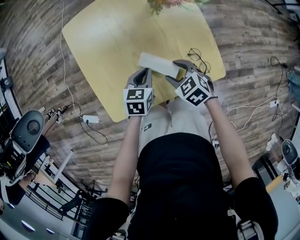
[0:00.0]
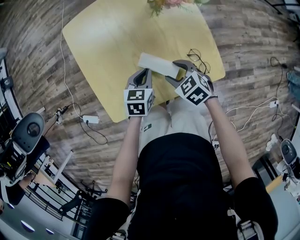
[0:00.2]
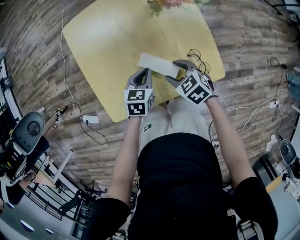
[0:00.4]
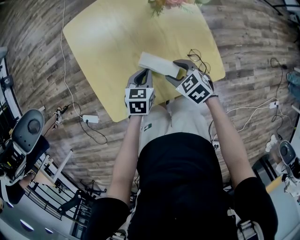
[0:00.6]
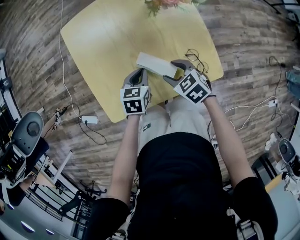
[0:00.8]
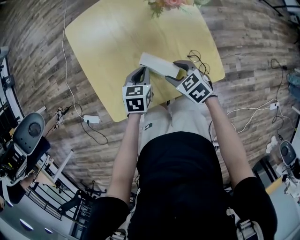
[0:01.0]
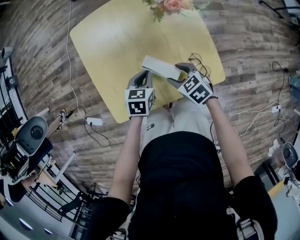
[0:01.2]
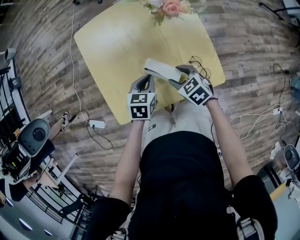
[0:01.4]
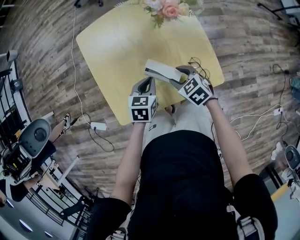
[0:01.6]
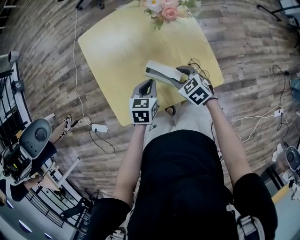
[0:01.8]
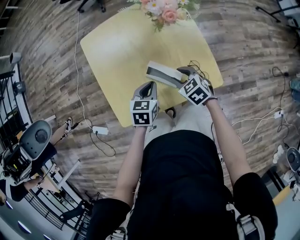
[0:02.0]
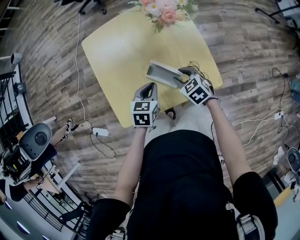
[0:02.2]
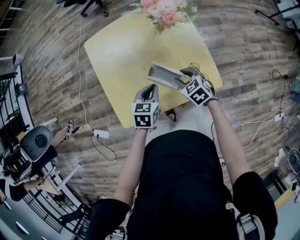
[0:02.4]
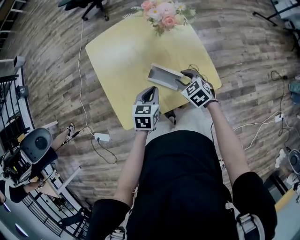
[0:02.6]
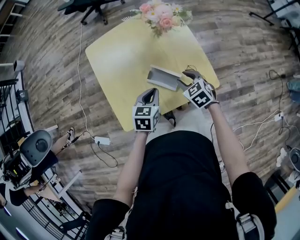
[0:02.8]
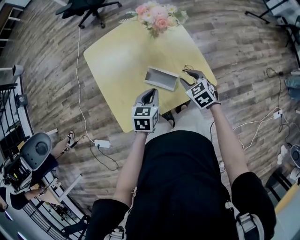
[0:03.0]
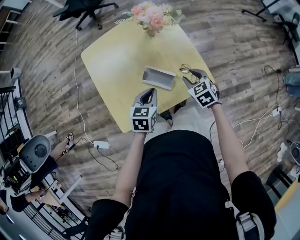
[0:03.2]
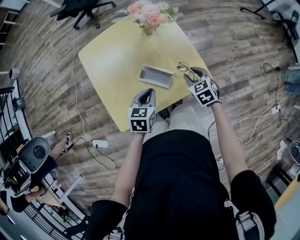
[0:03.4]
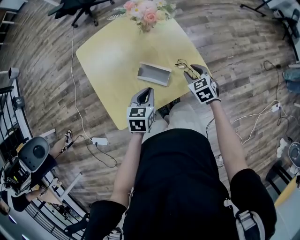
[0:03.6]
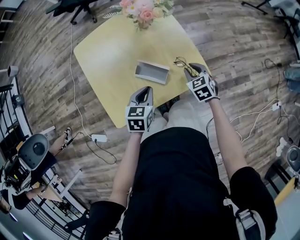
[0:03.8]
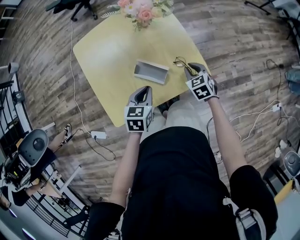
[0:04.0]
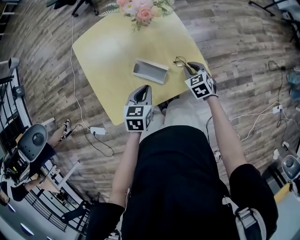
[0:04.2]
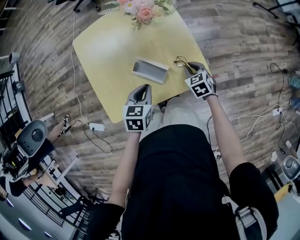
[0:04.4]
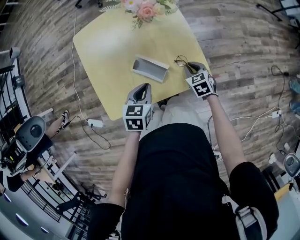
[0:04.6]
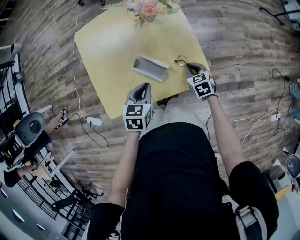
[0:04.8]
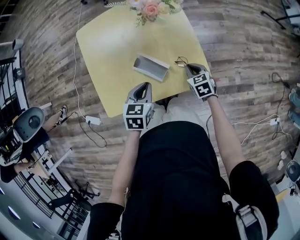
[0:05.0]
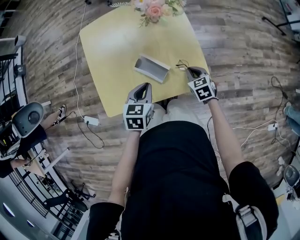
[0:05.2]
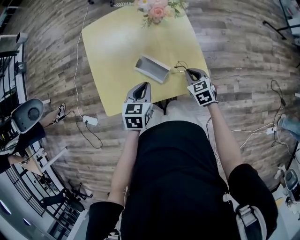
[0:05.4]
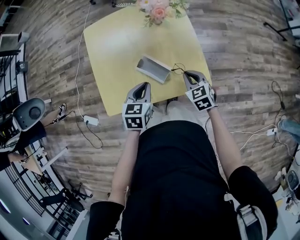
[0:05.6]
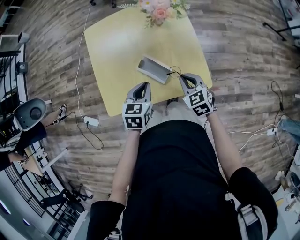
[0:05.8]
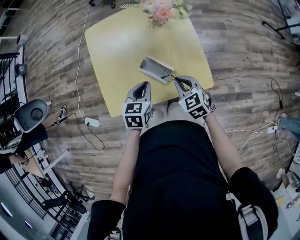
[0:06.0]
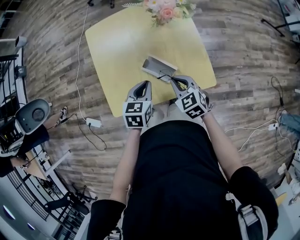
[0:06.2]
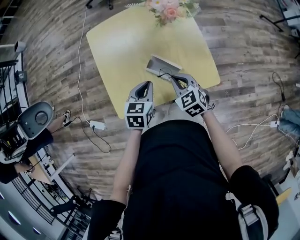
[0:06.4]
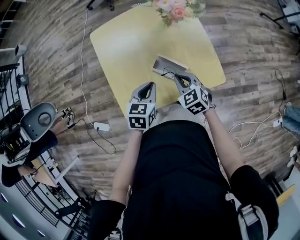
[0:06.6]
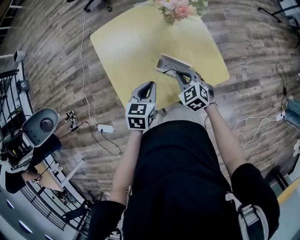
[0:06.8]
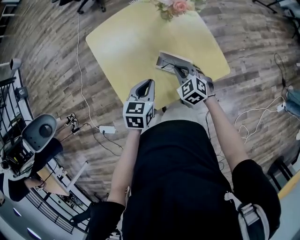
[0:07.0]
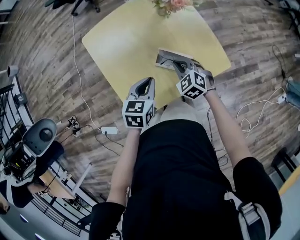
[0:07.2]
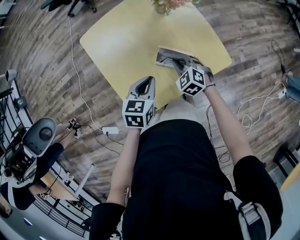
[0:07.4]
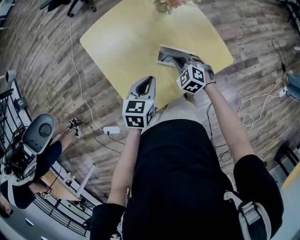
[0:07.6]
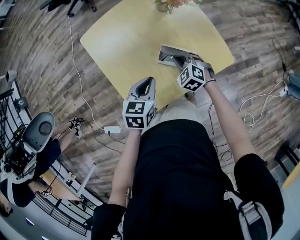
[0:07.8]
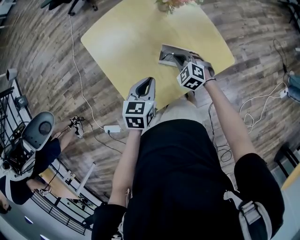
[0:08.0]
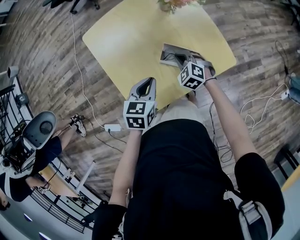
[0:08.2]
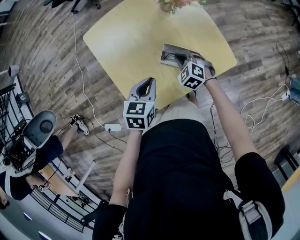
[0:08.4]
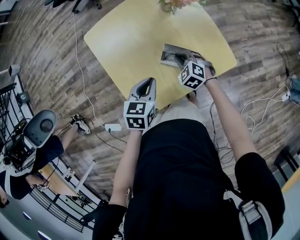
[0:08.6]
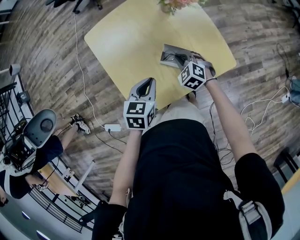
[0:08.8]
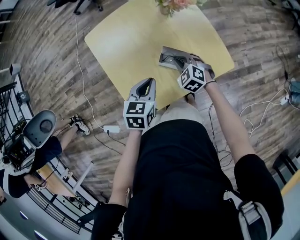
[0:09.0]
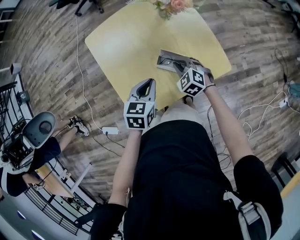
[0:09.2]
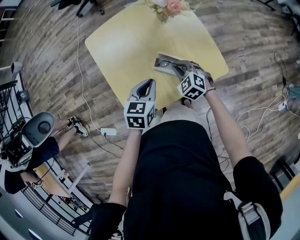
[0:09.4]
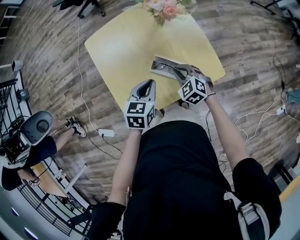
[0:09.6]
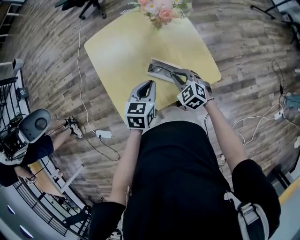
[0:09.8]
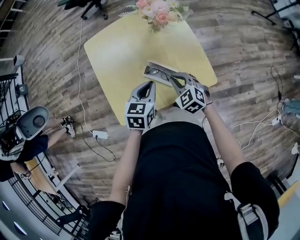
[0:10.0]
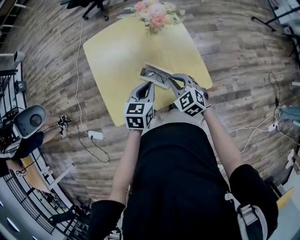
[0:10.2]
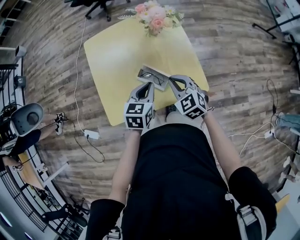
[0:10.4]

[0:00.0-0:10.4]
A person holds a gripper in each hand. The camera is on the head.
0:00.0 to 0:01.4: The grippers make only small movements.
0:01.4 to 0:03.0: The right gripper heads to the right and upward, covering about 10 cm, while the left gripper travels upward and backward by about 10 cm.
0:03.0 to 0:04.4: The right gripper is displaced downward and to the right by some 10 cm.
0:04.4 to 0:06.0: The right gripper goes approximately 15 cm upward and to the left, and rotates some 20 degrees.
0:06.0 to 0:07.4: The left gripper moves to the left, about 10 cm, and rotates some 20 degrees; the right gripper heads to the left, downward and forward, covering roughly 15 cm.
0:07.4 to 0:09.0: The grippers move only a little.
0:09.0 to 0:10.4: The left gripper goes approximately 15 cm to the right. The right gripper moves upward, to the right and backward, roughly 15 cm.

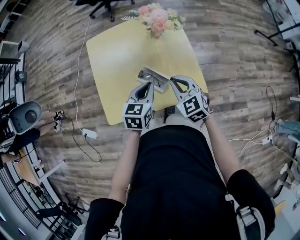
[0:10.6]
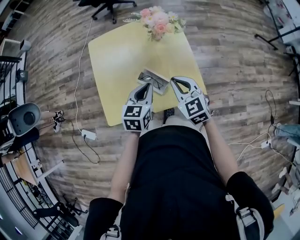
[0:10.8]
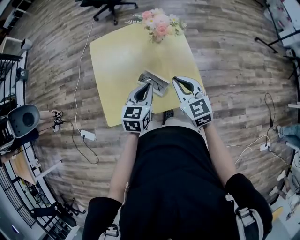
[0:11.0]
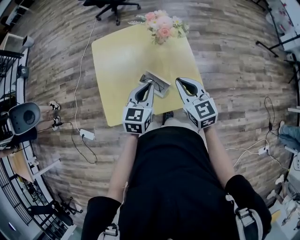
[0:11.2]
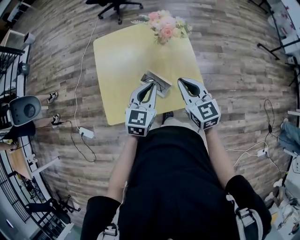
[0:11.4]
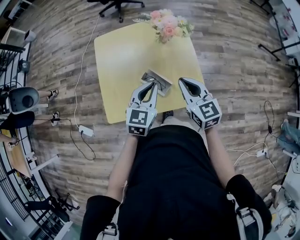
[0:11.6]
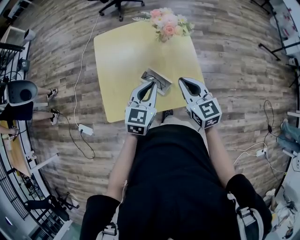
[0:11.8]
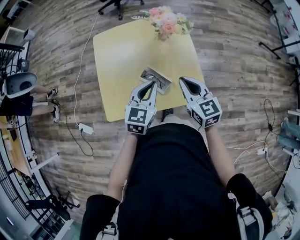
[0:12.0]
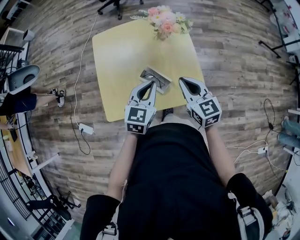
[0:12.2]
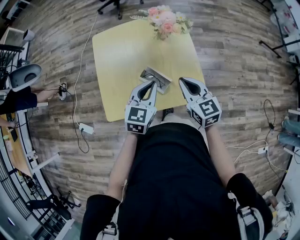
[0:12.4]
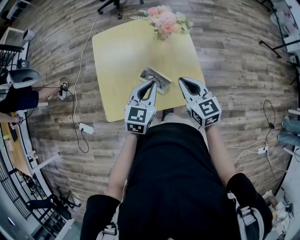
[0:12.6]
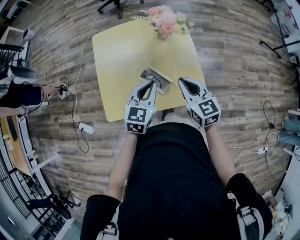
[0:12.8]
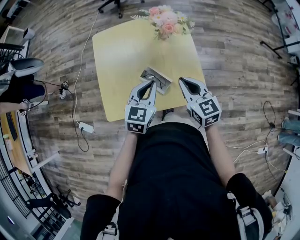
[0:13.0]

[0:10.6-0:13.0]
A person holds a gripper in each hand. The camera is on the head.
0:10.6 to 0:11.8: The right gripper shifts about 5 cm upward, and rotates some 20 degrees.
0:11.8 to 0:13.0: The grippers move only a little.

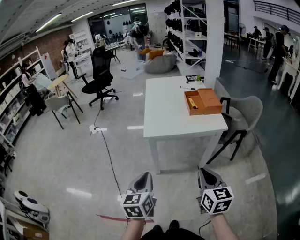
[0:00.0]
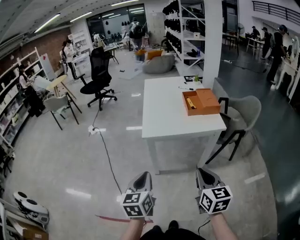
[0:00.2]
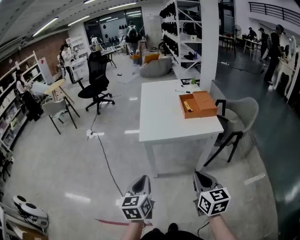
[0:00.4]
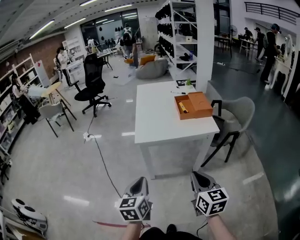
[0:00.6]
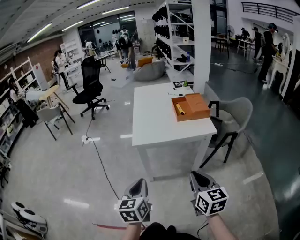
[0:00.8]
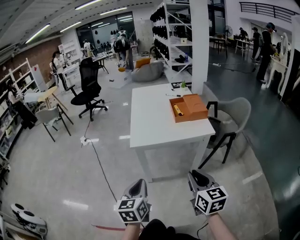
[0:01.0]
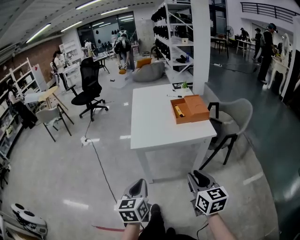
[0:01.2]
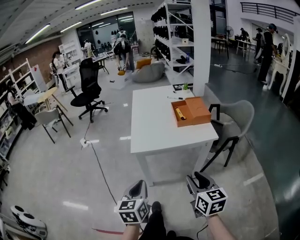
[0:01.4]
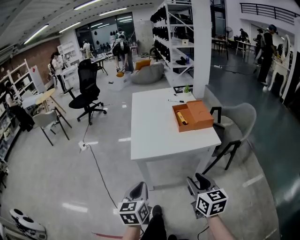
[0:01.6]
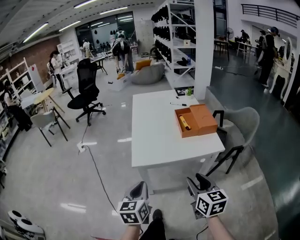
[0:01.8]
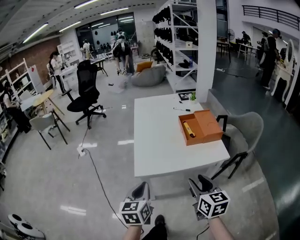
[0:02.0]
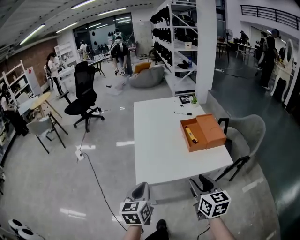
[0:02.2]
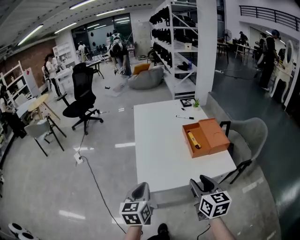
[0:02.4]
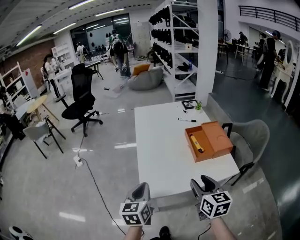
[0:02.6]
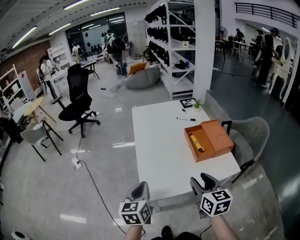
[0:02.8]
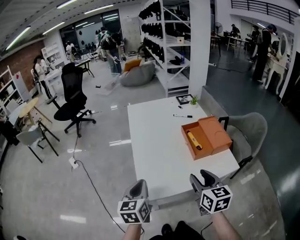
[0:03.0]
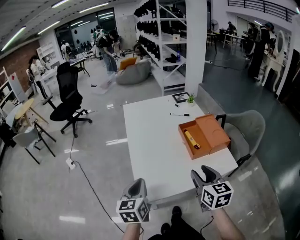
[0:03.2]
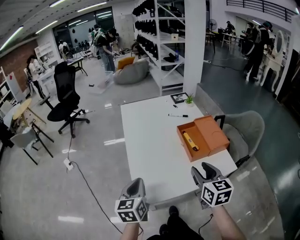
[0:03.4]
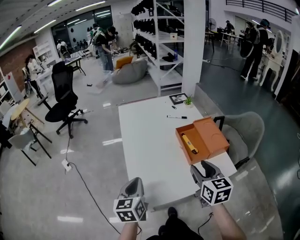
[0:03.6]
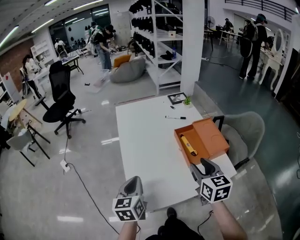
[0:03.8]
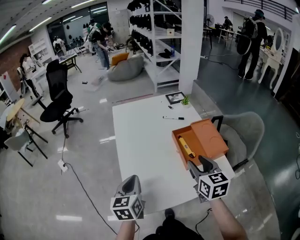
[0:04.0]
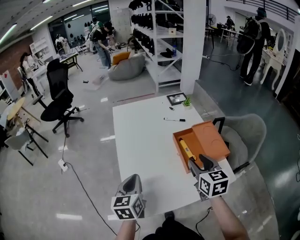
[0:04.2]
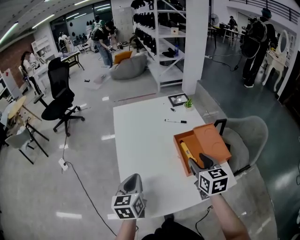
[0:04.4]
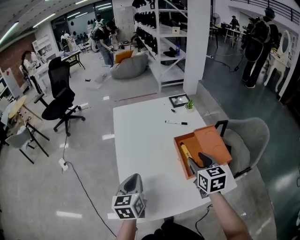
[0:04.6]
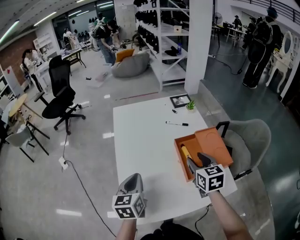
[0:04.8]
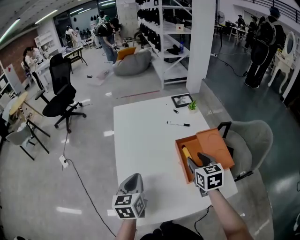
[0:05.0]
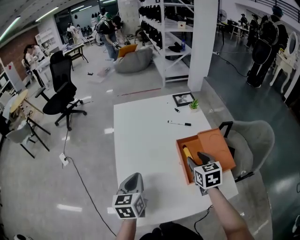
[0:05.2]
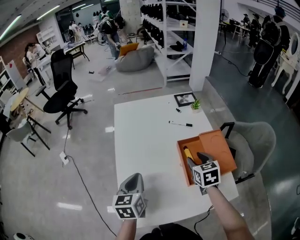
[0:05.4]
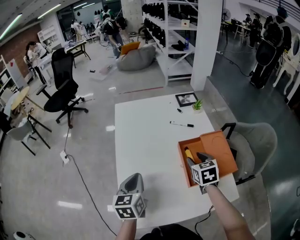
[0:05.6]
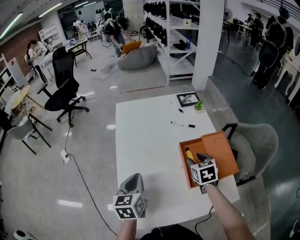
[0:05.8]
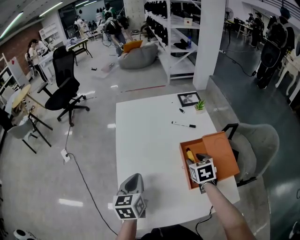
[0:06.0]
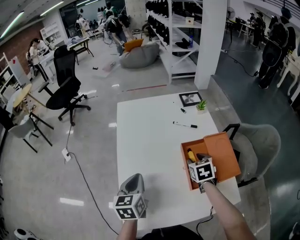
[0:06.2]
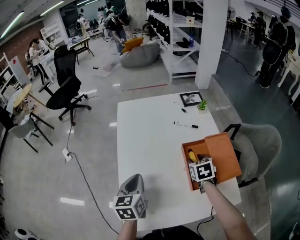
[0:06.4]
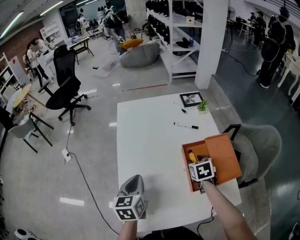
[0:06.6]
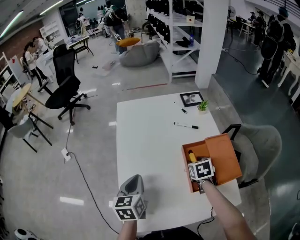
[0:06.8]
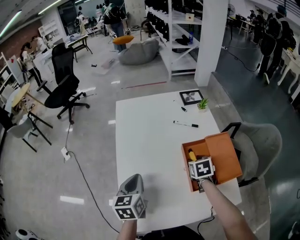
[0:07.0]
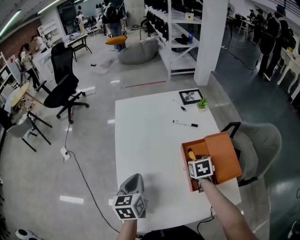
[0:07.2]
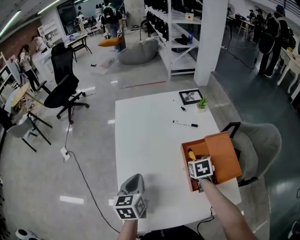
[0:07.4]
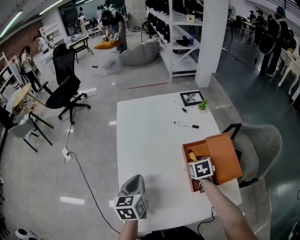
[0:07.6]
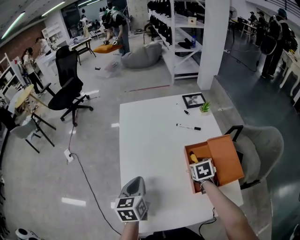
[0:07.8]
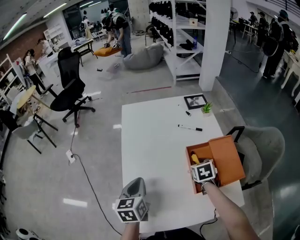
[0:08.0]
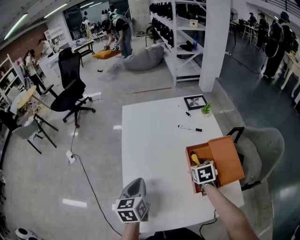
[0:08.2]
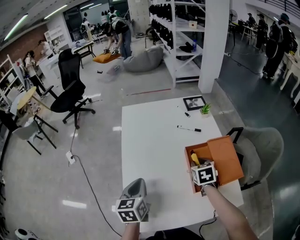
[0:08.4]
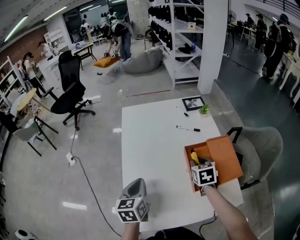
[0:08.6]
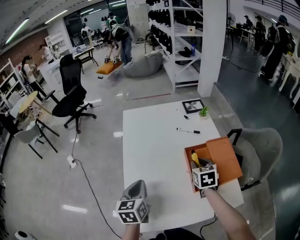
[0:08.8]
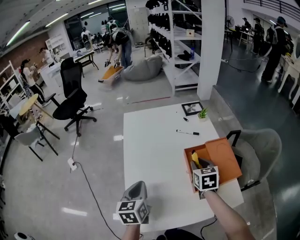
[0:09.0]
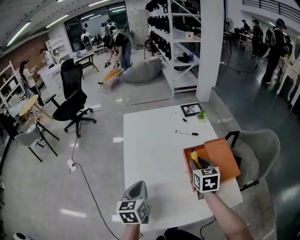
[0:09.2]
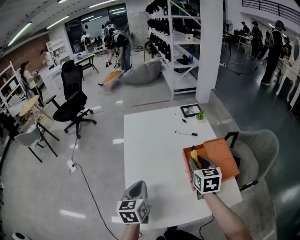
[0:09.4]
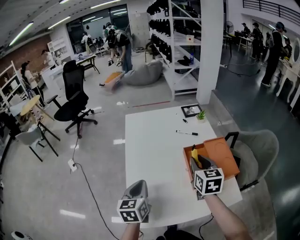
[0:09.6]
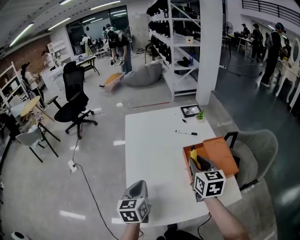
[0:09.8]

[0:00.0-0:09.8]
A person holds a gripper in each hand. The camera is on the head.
0:00.0 to 0:01.4: Both grippers move forward, approximately 5 cm. The right gripper opens.
0:01.4 to 0:02.8: Both grippers move forward, approximately 30 cm.
0:02.8 to 0:04.2: The two grippers go some 15 cm forward.
0:04.2 to 0:05.6: The left gripper moves forward, approximately 10 cm; the right gripper is displaced forward and downward by roughly 15 cm.
0:05.6 to 0:07.0: The right gripper goes roughly 5 cm downward.
0:07.0 to 0:08.4: The grippers stay close to where they were, moving slightly.
0:08.4 to 0:09.8: The right gripper is displaced upward and backward by approximately 15 cm, and changes its angle by some 30 degrees; the left gripper ends up approximately 5 cm from where it was.

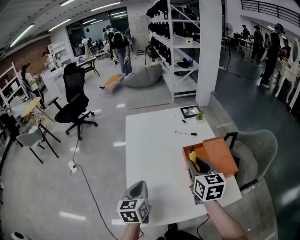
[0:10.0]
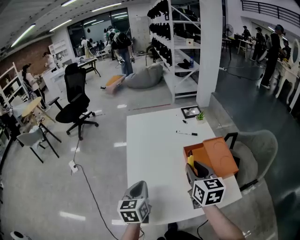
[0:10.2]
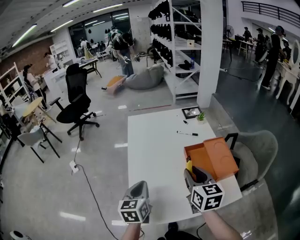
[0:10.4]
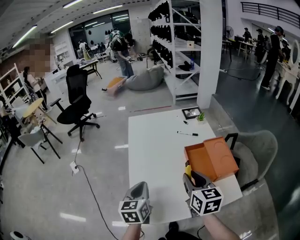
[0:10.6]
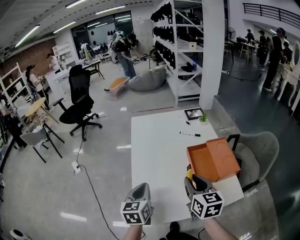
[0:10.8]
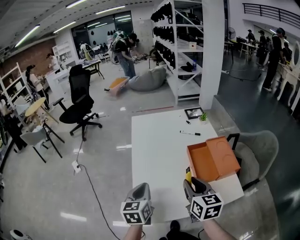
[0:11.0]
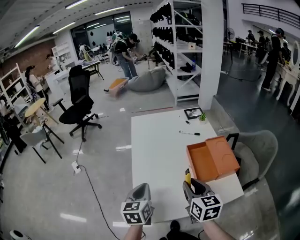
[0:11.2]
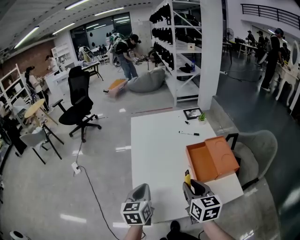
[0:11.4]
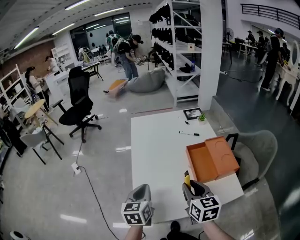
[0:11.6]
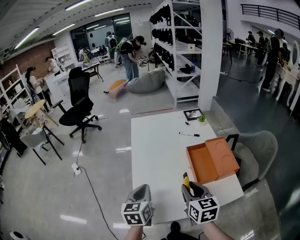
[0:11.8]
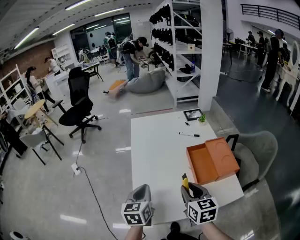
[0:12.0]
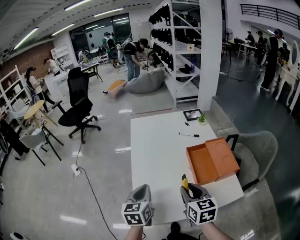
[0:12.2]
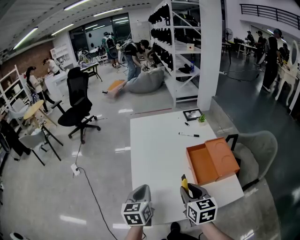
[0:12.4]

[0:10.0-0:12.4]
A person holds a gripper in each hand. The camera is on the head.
0:10.0 to 0:11.2: The right gripper heads backward and to the left, covering roughly 10 cm.
0:11.2 to 0:12.4: The grippers move only a little.
